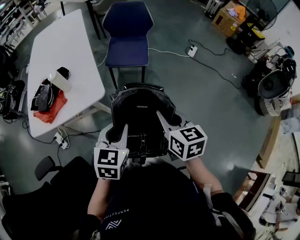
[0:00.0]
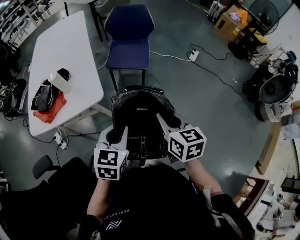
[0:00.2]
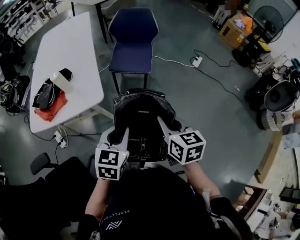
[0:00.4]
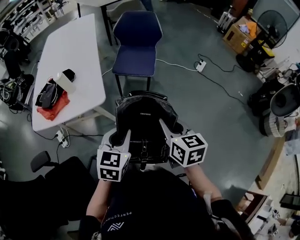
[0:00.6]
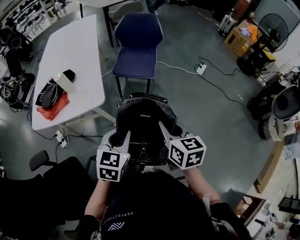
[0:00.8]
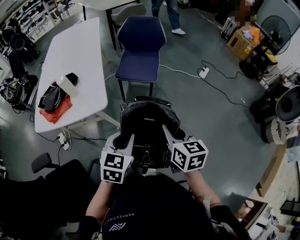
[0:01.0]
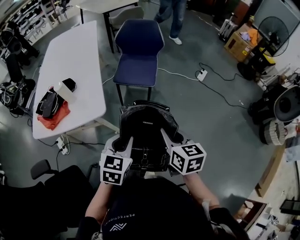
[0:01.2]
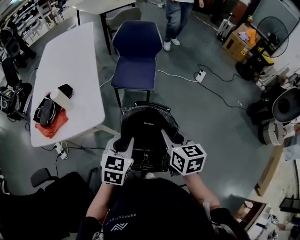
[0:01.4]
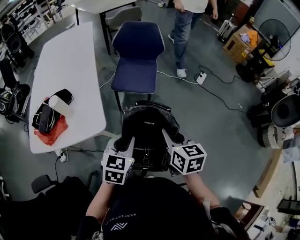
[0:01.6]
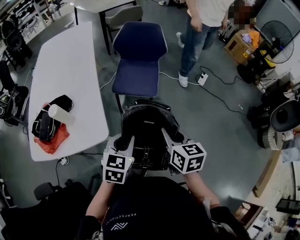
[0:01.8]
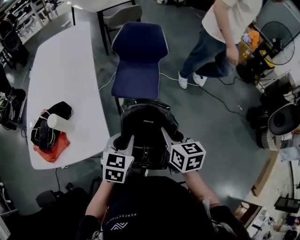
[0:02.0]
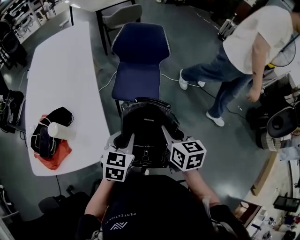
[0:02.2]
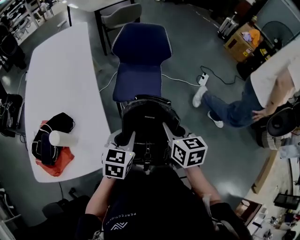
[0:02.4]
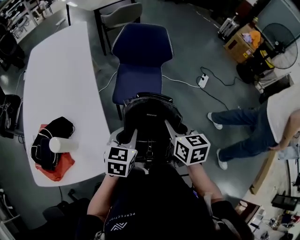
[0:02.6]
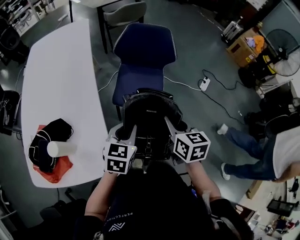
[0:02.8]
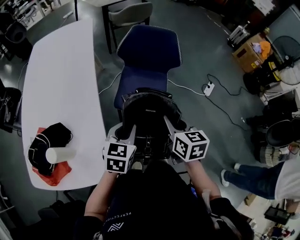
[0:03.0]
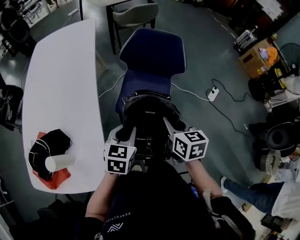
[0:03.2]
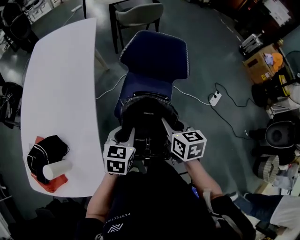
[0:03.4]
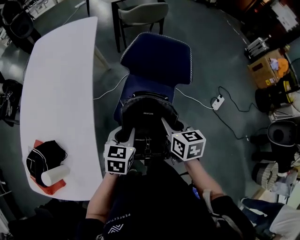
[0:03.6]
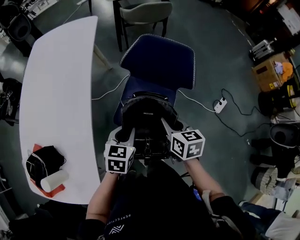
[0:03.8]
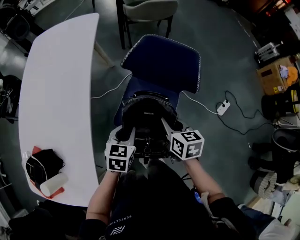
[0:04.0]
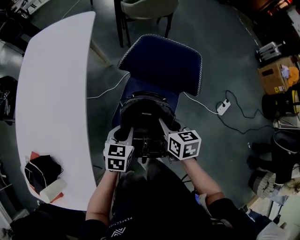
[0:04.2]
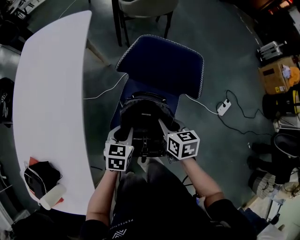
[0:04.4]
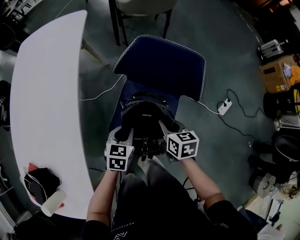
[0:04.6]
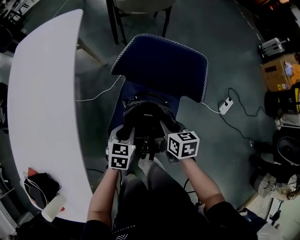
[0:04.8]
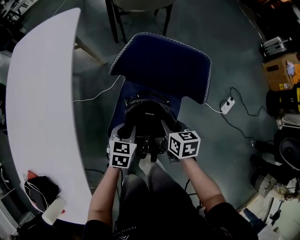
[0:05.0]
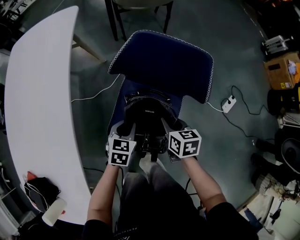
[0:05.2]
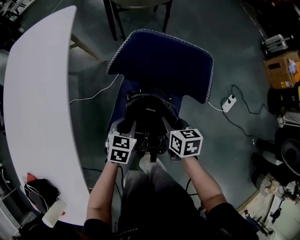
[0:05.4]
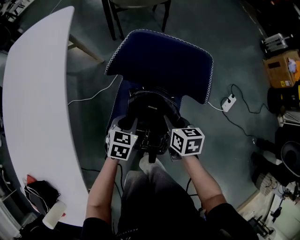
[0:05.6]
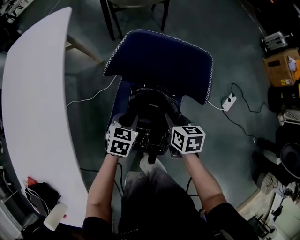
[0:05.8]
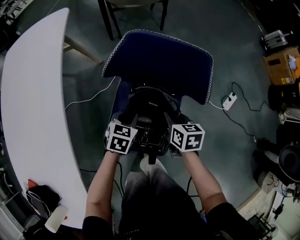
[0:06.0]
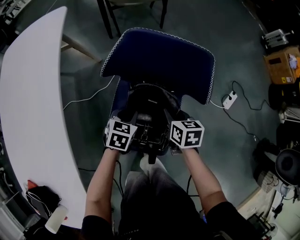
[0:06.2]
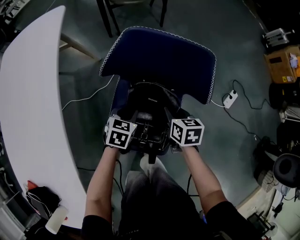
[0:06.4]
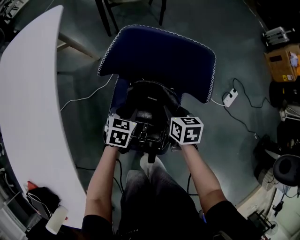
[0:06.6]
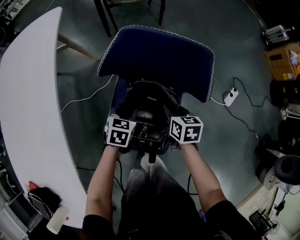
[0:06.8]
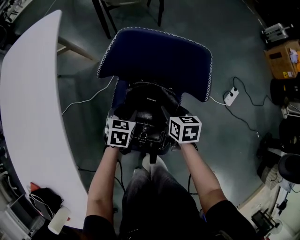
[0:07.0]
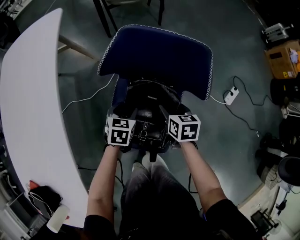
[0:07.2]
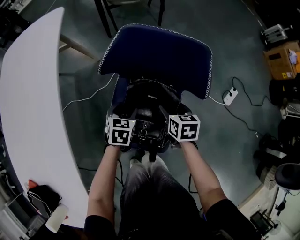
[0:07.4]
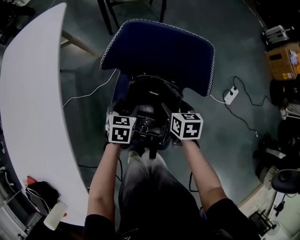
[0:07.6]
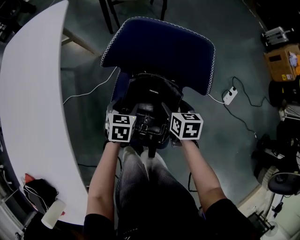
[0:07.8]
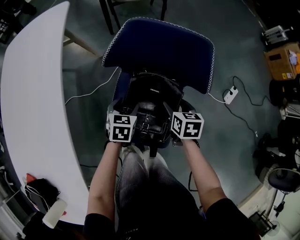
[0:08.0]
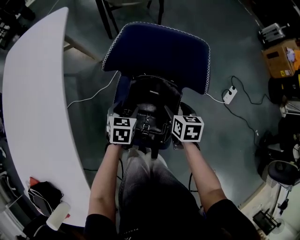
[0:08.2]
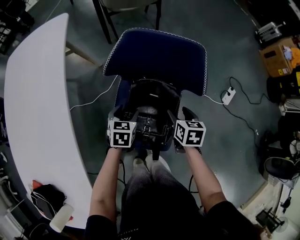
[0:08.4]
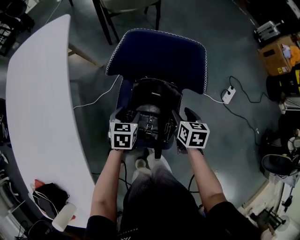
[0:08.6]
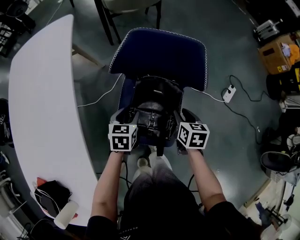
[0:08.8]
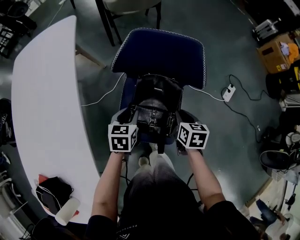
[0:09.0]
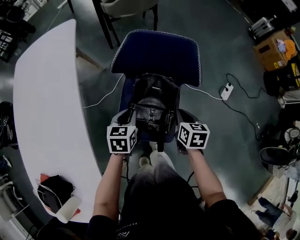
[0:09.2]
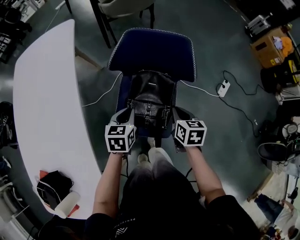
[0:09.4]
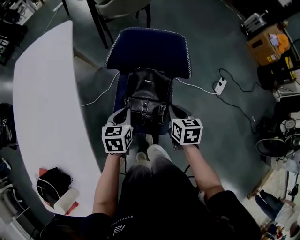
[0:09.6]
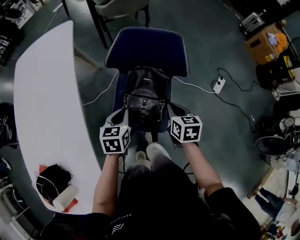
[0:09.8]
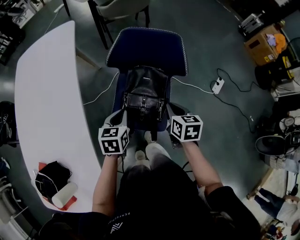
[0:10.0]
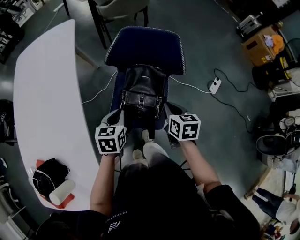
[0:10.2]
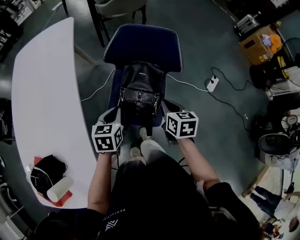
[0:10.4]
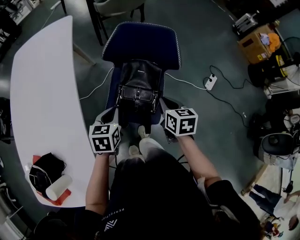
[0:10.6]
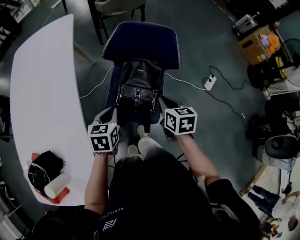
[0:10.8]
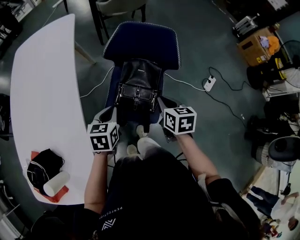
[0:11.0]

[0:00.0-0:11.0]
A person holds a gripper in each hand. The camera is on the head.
0:00.0 to 0:01.6: The two grippers go approximately 10 cm forward.
0:01.6 to 0:03.2: The grippers both shift forward by about 35 cm.
0:03.2 to 0:04.8: Both grippers travel together forward and downward, approximately 30 cm.
0:04.8 to 0:06.2: The right gripper heads forward, covering approximately 5 cm; the left gripper is displaced forward and downward by about 10 cm.
0:06.2 to 0:07.8: The left gripper opens; the right gripper opens up.
0:07.8 to 0:09.4: The two grippers go roughly 15 cm upward and backward. The right gripper closes its fingers, while the left gripper closes up.
0:09.4 to 0:11.0: The left gripper moves backward and upward, some 10 cm, while the right gripper moves upward and backward, approximately 10 cm.

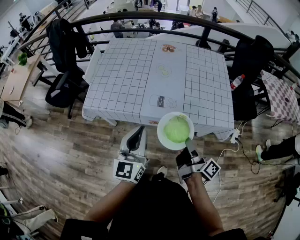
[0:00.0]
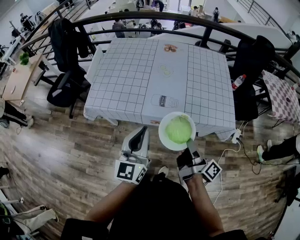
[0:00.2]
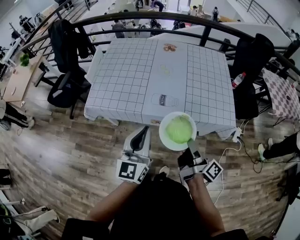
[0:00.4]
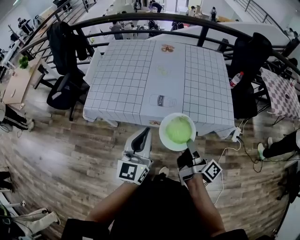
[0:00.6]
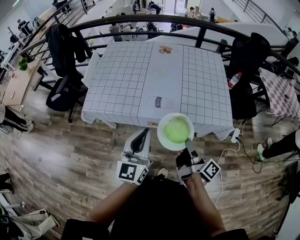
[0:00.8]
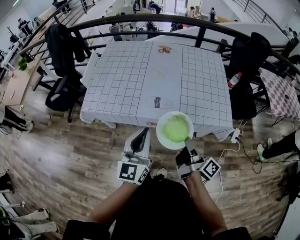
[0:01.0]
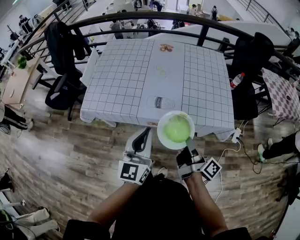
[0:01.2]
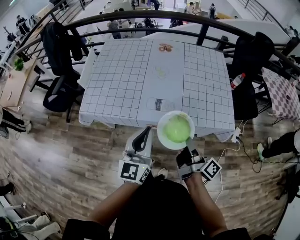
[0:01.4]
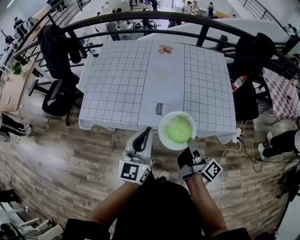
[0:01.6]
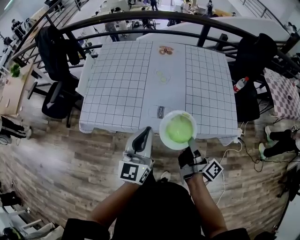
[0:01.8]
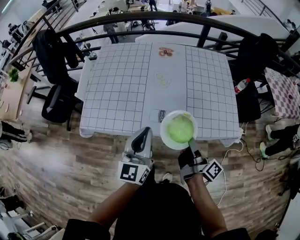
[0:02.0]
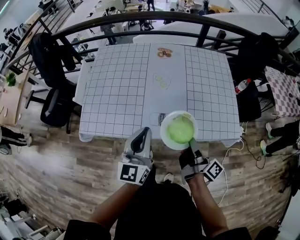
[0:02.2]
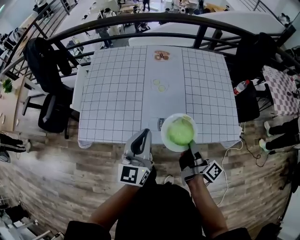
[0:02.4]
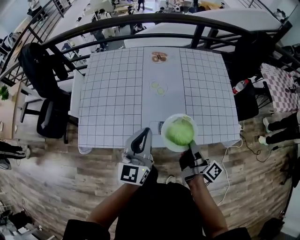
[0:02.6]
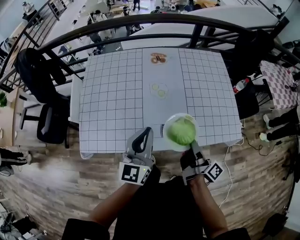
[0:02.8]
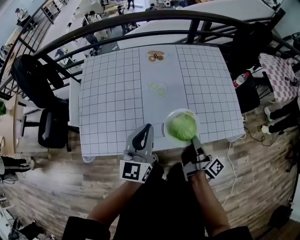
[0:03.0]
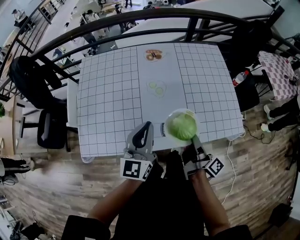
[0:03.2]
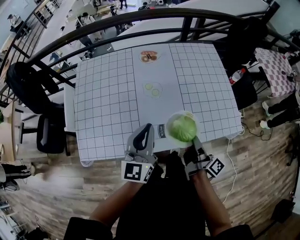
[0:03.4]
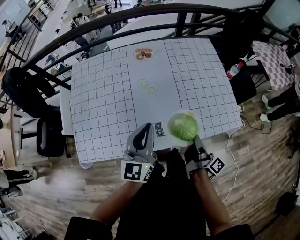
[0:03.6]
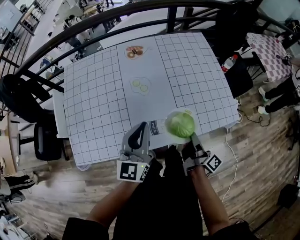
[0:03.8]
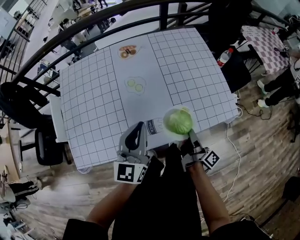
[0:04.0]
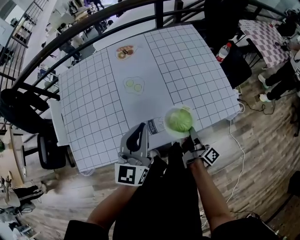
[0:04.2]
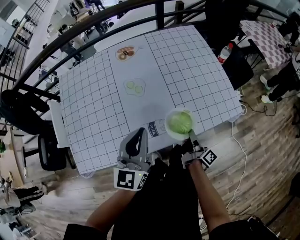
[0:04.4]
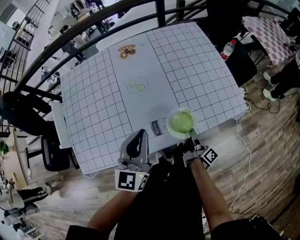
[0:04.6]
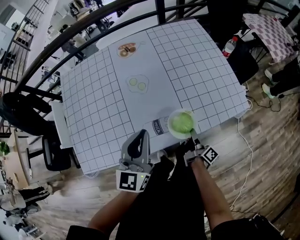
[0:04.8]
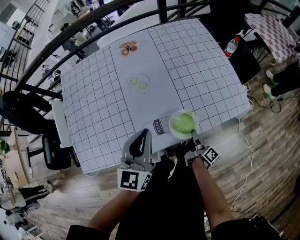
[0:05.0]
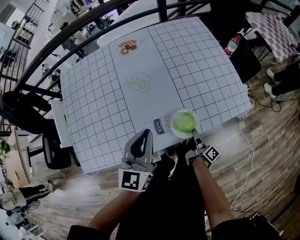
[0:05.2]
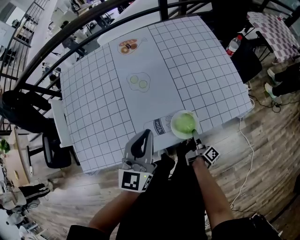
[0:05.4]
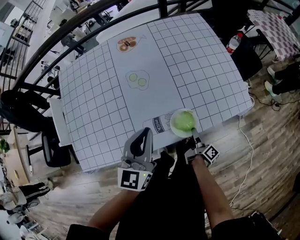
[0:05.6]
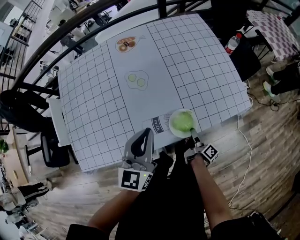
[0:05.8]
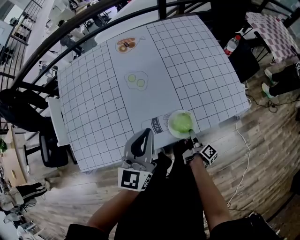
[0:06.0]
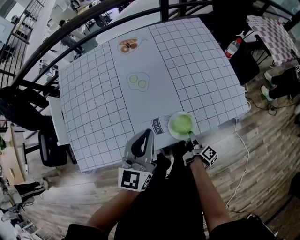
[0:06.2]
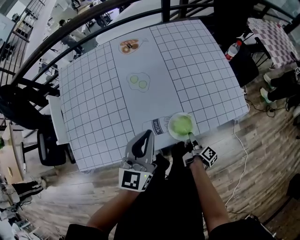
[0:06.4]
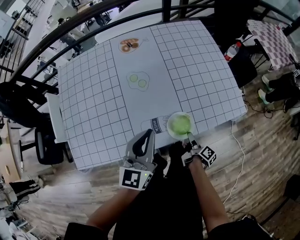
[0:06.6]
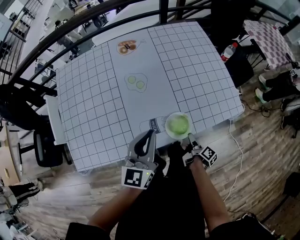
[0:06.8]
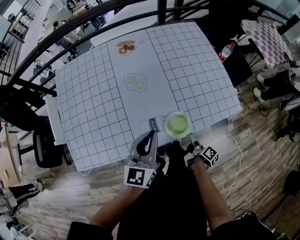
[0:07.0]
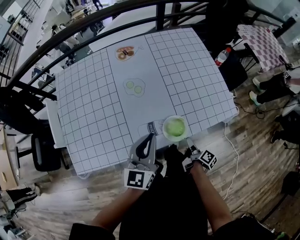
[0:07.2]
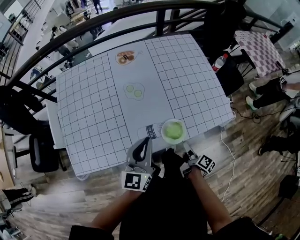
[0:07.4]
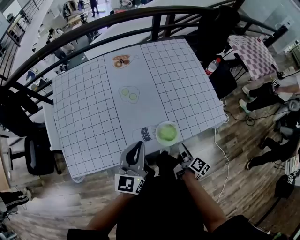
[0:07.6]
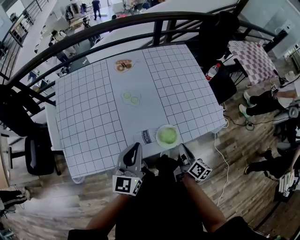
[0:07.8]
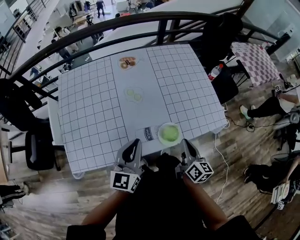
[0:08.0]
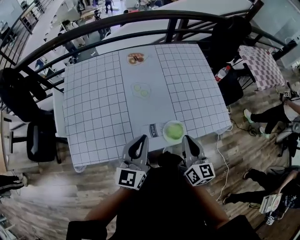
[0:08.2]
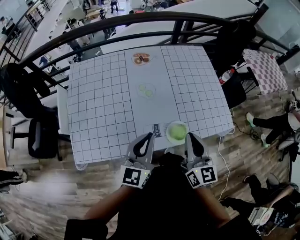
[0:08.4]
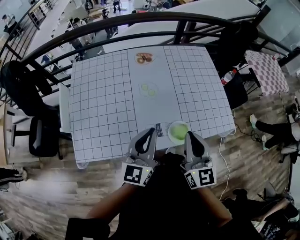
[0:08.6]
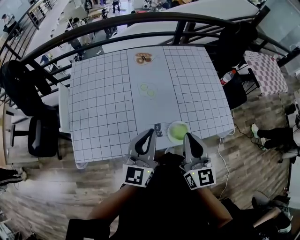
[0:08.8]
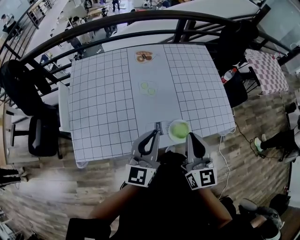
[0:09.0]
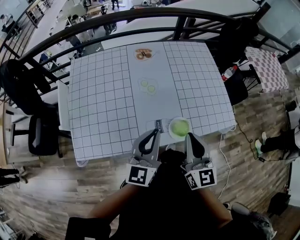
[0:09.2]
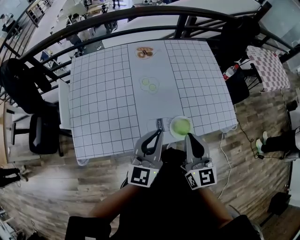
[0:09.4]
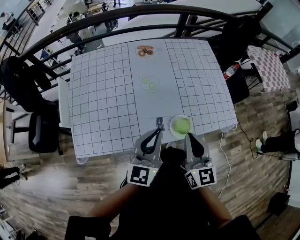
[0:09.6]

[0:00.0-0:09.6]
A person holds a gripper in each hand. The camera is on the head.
0:00.0 to 0:01.6: The left gripper moves about 10 cm.
0:01.6 to 0:03.2: The left gripper moves about 20 cm.
0:03.2 to 0:04.8: The left gripper travels downward by about 5 cm.
0:06.4 to 0:08.0: The left gripper ends up approximately 5 cm from where it was.

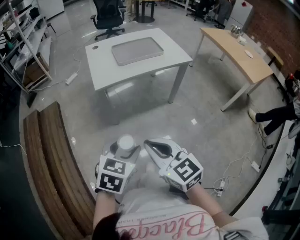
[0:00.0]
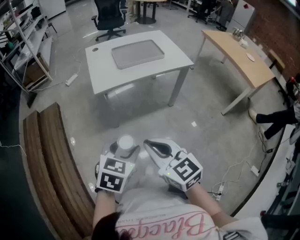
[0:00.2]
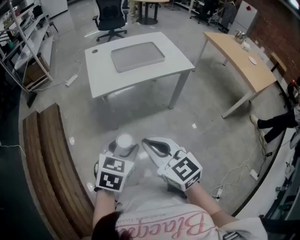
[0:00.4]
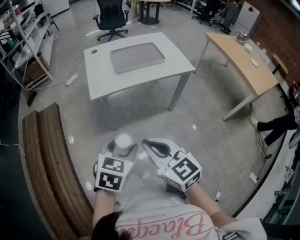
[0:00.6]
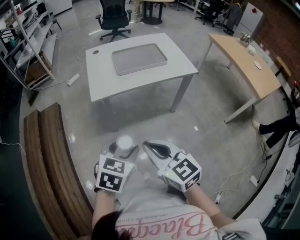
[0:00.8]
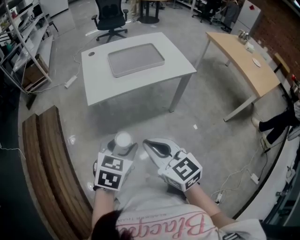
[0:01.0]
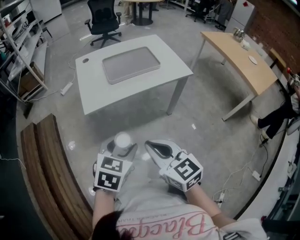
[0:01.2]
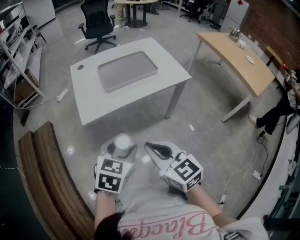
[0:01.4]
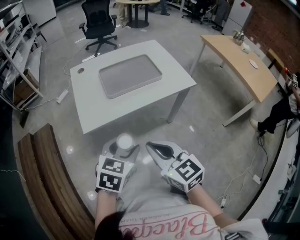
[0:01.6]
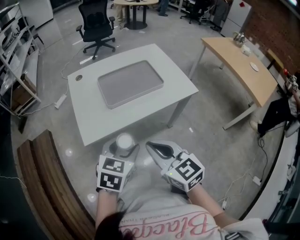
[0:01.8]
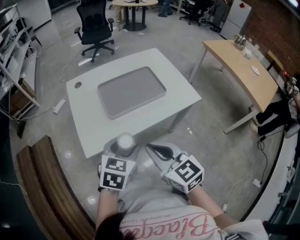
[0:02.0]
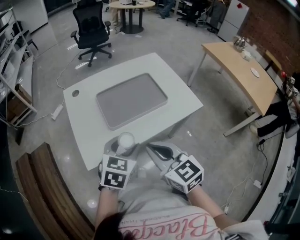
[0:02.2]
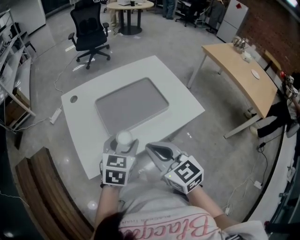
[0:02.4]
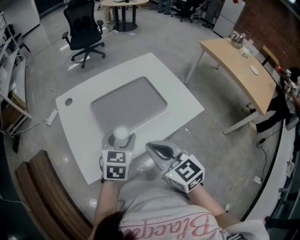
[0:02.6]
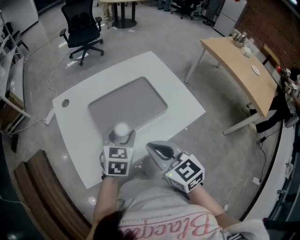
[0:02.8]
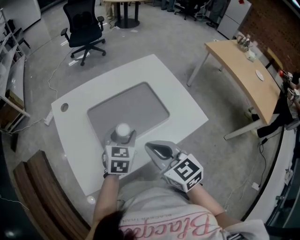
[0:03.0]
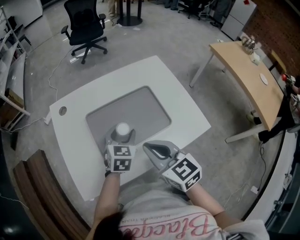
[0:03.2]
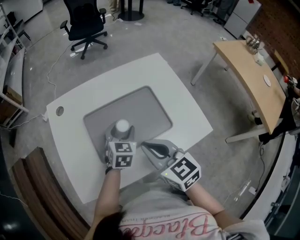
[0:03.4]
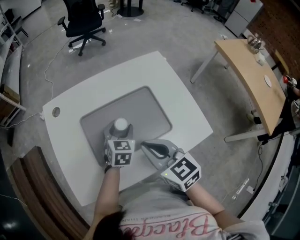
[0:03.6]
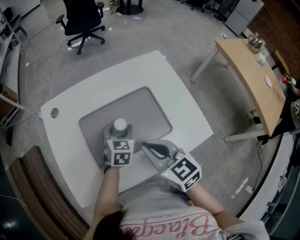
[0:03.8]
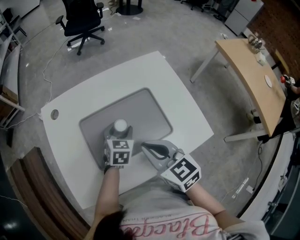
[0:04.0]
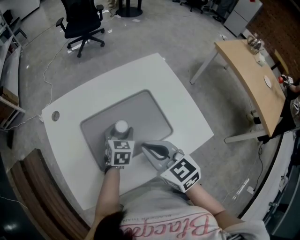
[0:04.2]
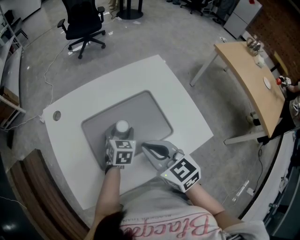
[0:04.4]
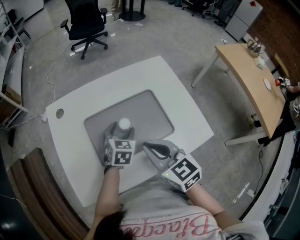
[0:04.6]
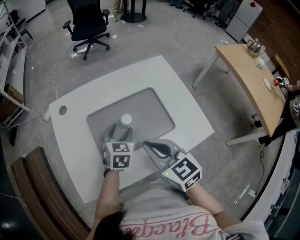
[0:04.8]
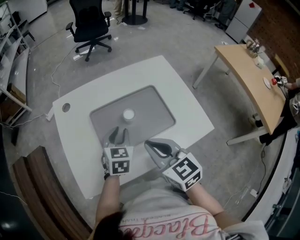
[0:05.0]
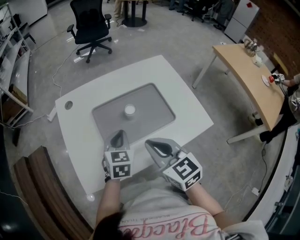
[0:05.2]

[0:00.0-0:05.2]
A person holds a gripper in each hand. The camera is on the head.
0:00.0 to 0:01.8: Both grippers travel together forward, roughly 25 cm.
0:01.8 to 0:03.4: The grippers both shift forward by roughly 30 cm.
0:03.4 to 0:05.2: The left gripper is displaced to the left by approximately 5 cm, and closes its fingers.
